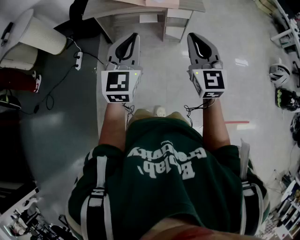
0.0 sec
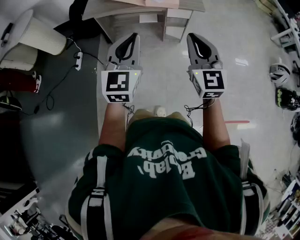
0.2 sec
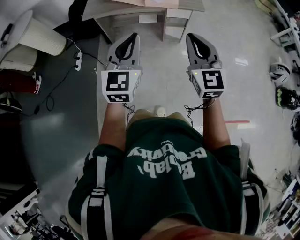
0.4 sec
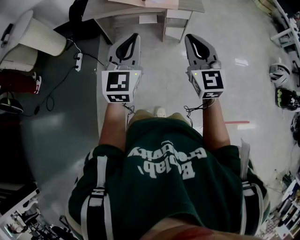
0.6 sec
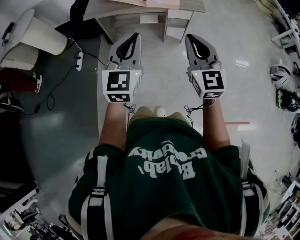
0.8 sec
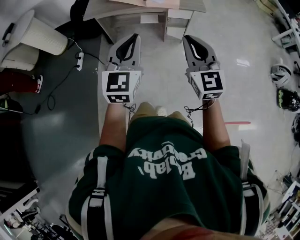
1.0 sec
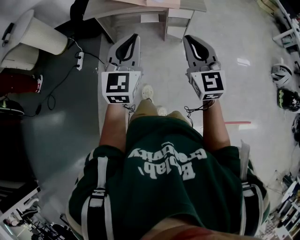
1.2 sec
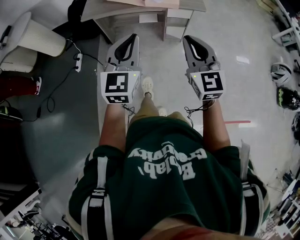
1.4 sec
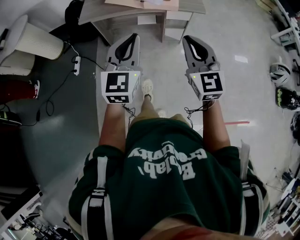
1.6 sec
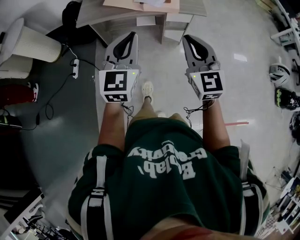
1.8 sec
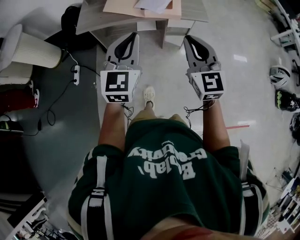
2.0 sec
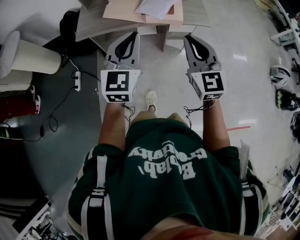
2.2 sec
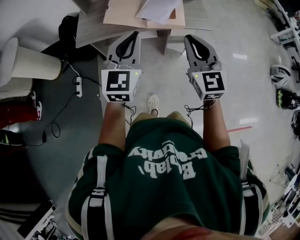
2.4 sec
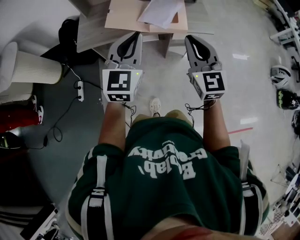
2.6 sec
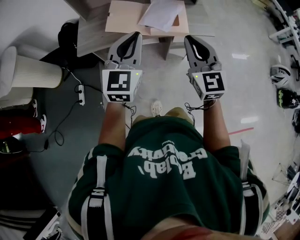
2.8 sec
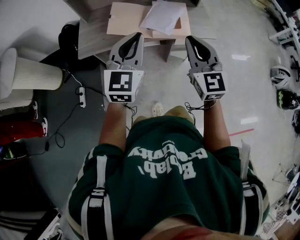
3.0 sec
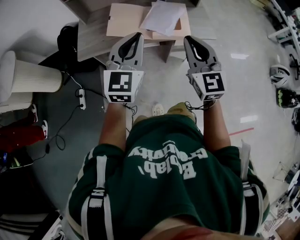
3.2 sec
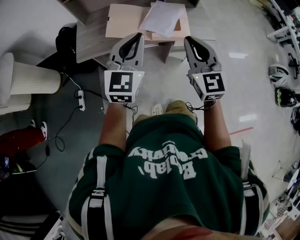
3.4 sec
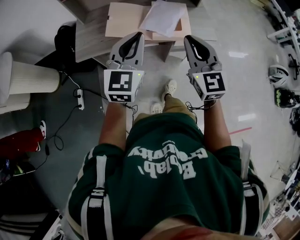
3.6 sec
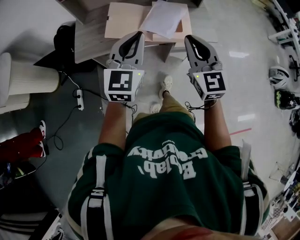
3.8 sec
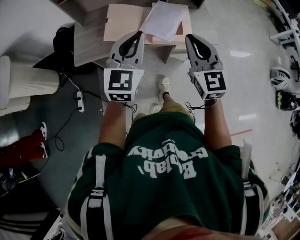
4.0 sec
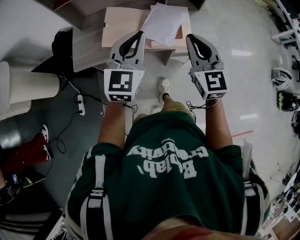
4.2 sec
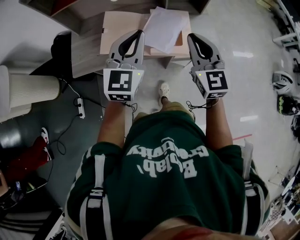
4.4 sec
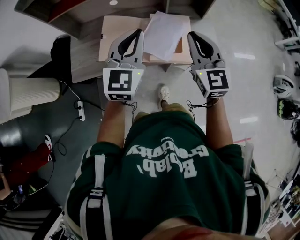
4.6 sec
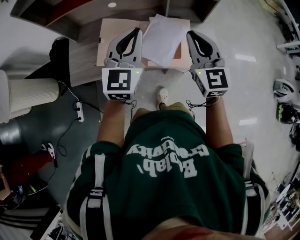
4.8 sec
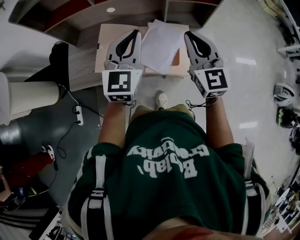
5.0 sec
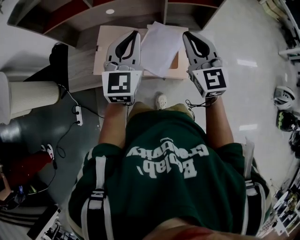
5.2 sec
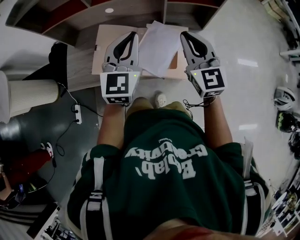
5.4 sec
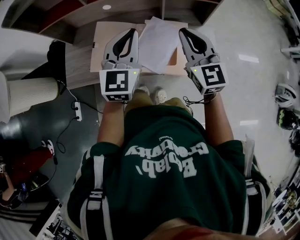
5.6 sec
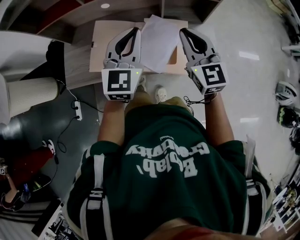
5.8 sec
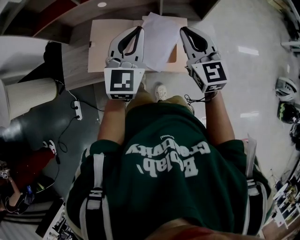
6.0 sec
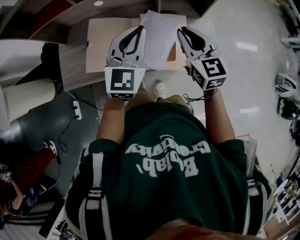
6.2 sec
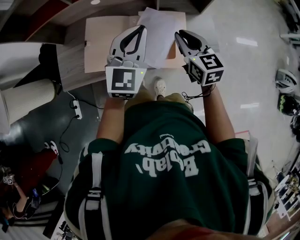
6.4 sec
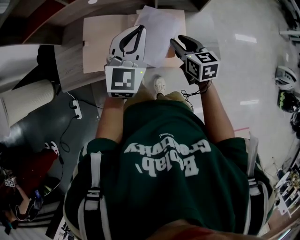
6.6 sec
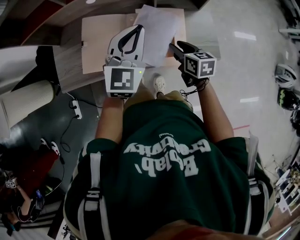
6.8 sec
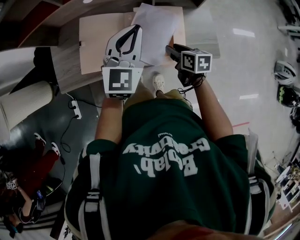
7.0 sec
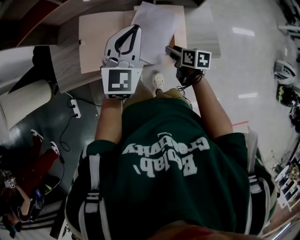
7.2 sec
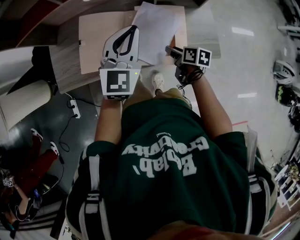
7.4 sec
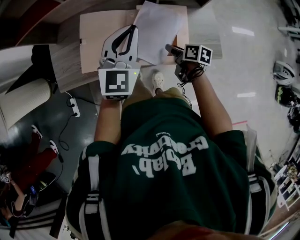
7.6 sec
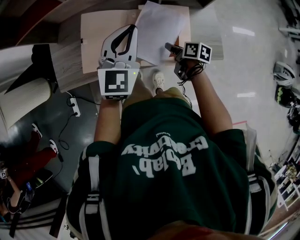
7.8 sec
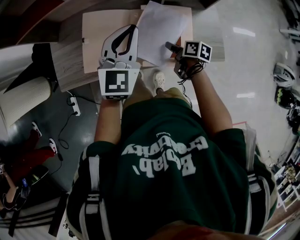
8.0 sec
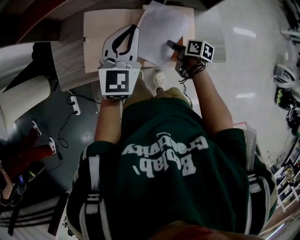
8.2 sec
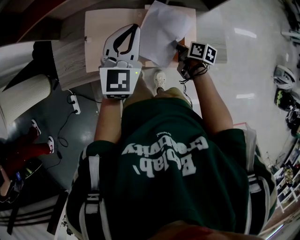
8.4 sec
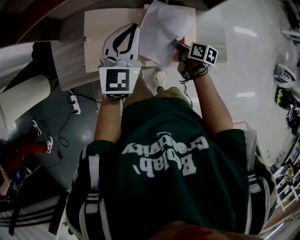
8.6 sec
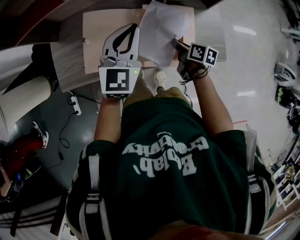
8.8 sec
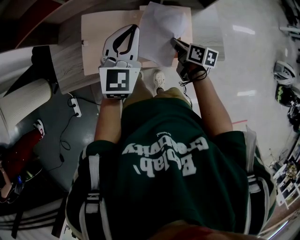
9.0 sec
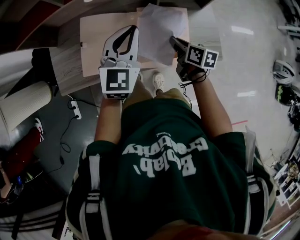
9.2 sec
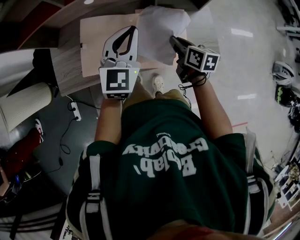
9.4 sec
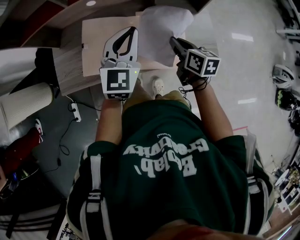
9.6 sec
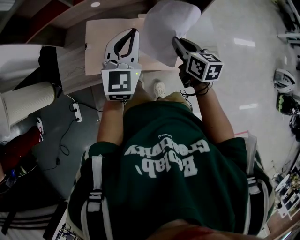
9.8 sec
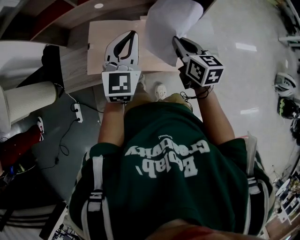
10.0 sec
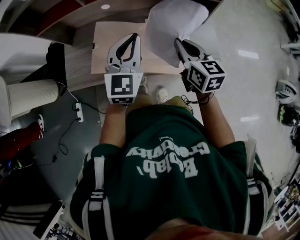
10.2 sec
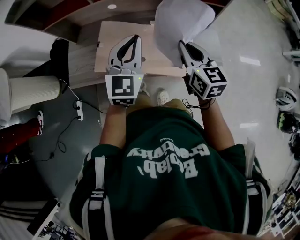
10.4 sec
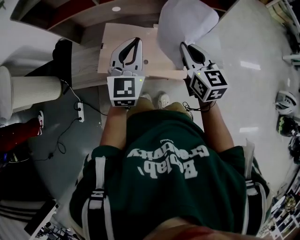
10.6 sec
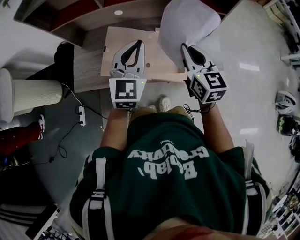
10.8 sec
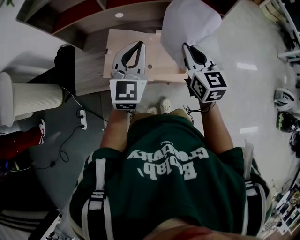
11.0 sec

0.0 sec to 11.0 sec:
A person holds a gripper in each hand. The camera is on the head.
0.0 sec to 1.6 sec: The two grippers go some 10 cm forward.
1.6 sec to 3.2 sec: The grippers both shift forward by some 35 cm.
3.2 sec to 4.8 sec: The grippers both shift forward by approximately 35 cm.
4.8 sec to 6.2 sec: The right gripper is displaced forward and downward by approximately 10 cm; the left gripper shifts about 10 cm forward and to the right.
6.2 sec to 7.8 sec: The right gripper heads downward, covering approximately 30 cm, rotates around the line of its fingers by some 60 degrees, clockwise from behind, and opens, while the left gripper moves downward, forward and to the left, about 10 cm.
7.8 sec to 9.4 sec: The right gripper travels upward by some 10 cm, rotates about 30 degrees, and closes up.
9.4 sec to 11.0 sec: The left gripper goes about 15 cm upward, backward and to the left. Meanwhile the right gripper moves upward, about 20 cm, and changes its angle by about 40 degrees.

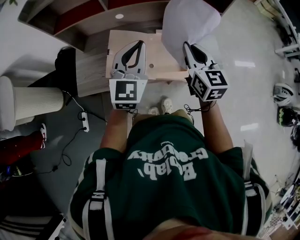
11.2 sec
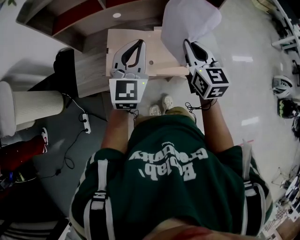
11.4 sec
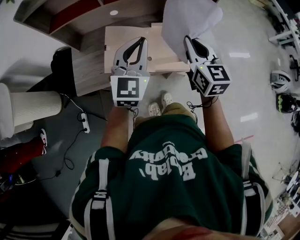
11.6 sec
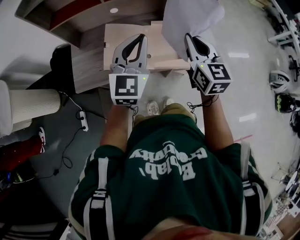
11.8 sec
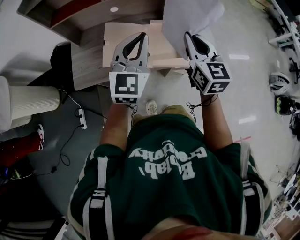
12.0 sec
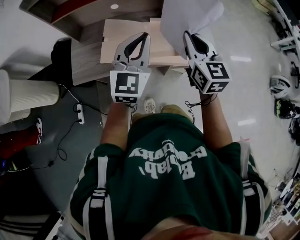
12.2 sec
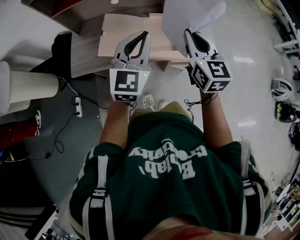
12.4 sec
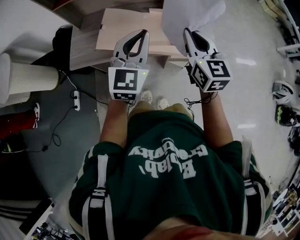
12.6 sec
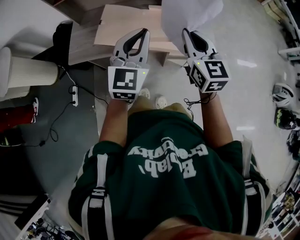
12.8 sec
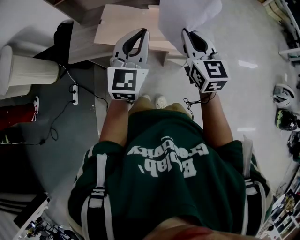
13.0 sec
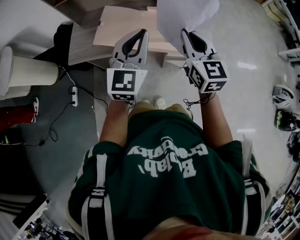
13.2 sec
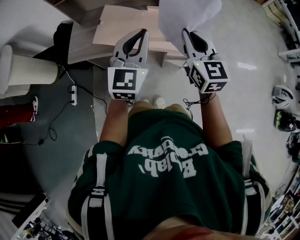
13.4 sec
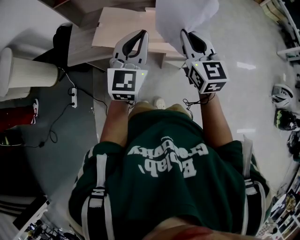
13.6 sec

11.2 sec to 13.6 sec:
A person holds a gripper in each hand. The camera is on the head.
11.2 sec to 12.4 sec: Both grippers move backward and to the right, about 15 cm.
12.4 sec to 13.6 sec: The grippers both shift backward and to the right by some 10 cm.

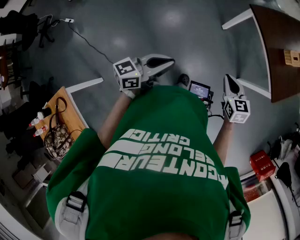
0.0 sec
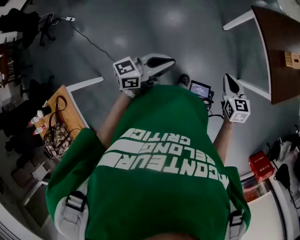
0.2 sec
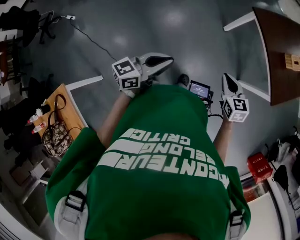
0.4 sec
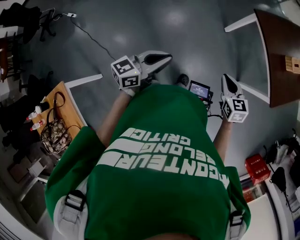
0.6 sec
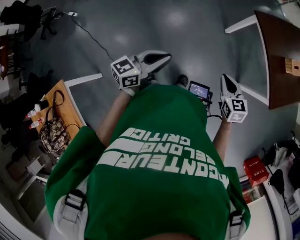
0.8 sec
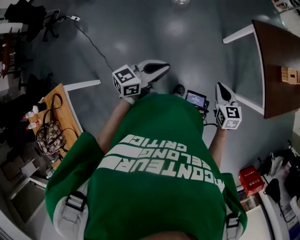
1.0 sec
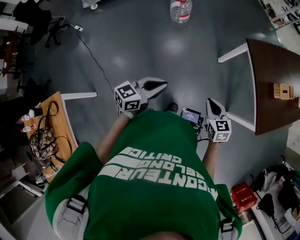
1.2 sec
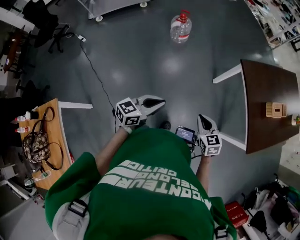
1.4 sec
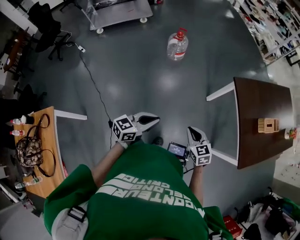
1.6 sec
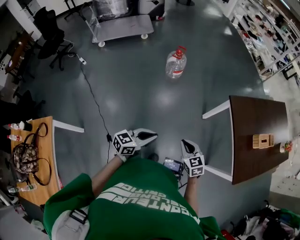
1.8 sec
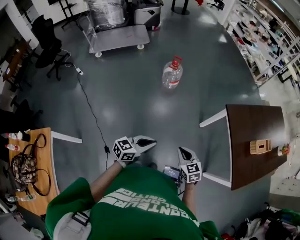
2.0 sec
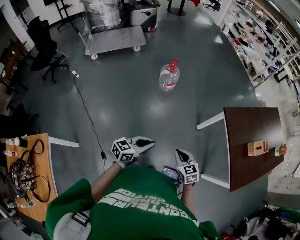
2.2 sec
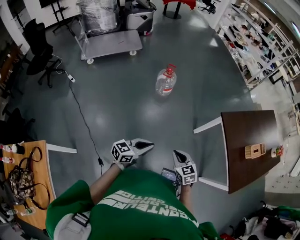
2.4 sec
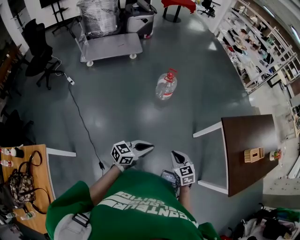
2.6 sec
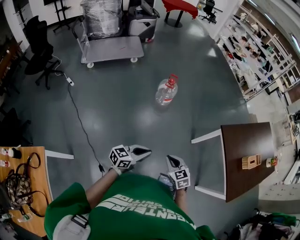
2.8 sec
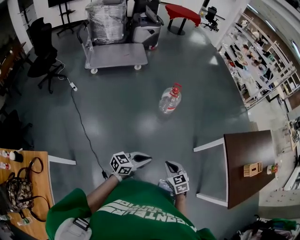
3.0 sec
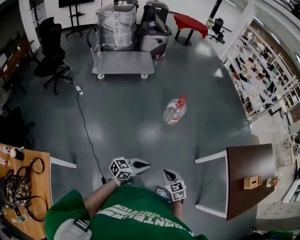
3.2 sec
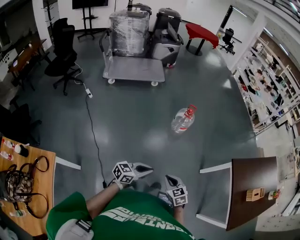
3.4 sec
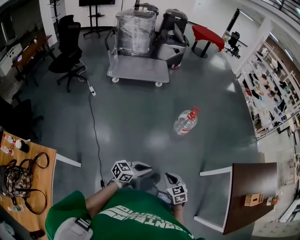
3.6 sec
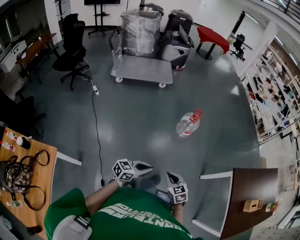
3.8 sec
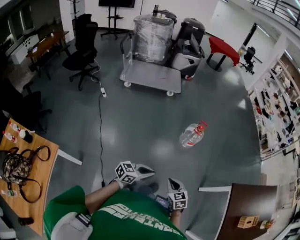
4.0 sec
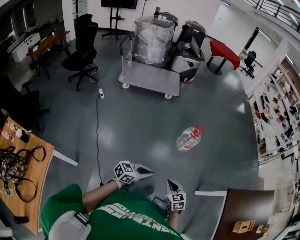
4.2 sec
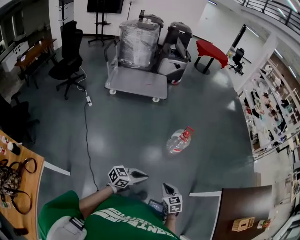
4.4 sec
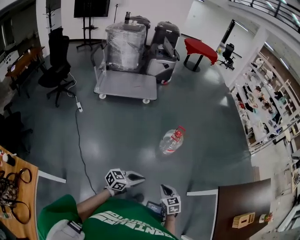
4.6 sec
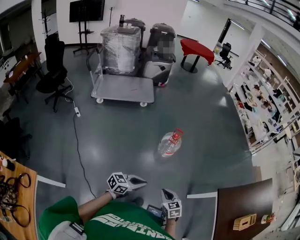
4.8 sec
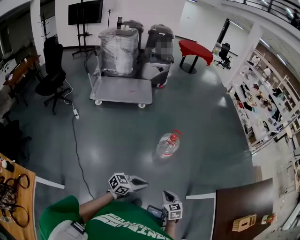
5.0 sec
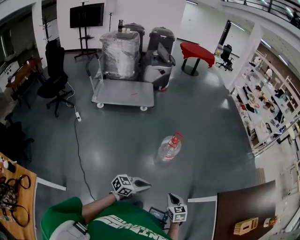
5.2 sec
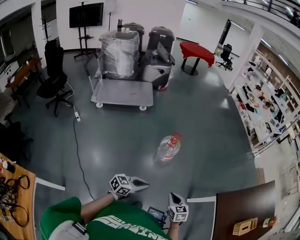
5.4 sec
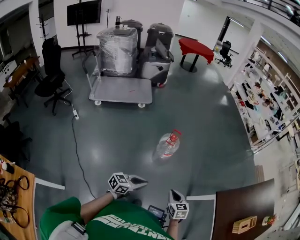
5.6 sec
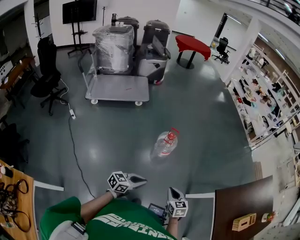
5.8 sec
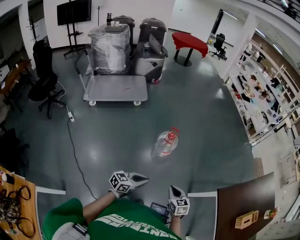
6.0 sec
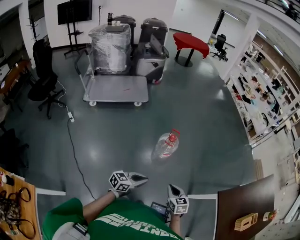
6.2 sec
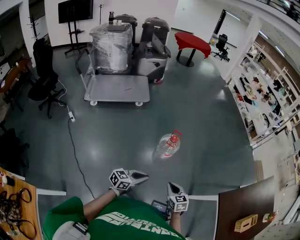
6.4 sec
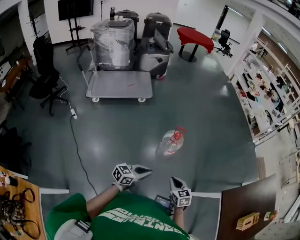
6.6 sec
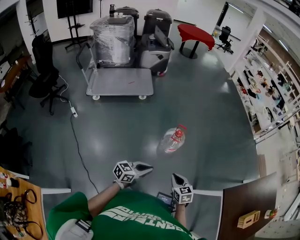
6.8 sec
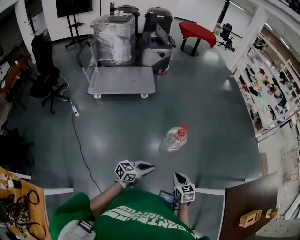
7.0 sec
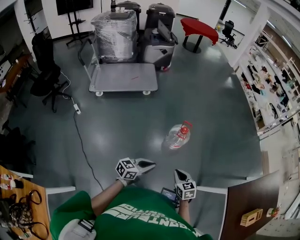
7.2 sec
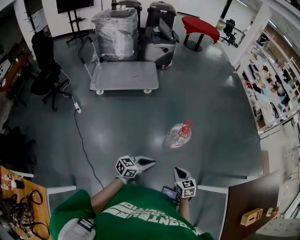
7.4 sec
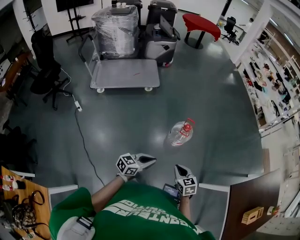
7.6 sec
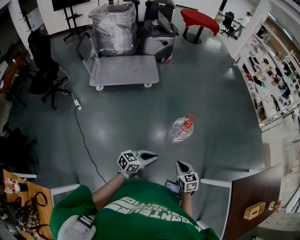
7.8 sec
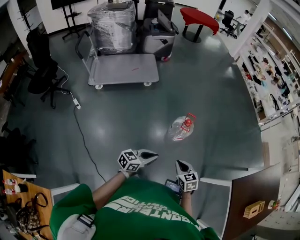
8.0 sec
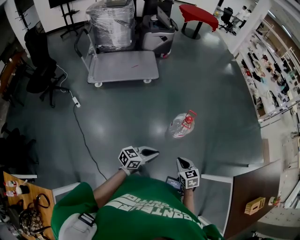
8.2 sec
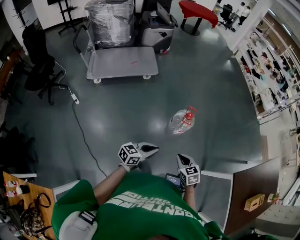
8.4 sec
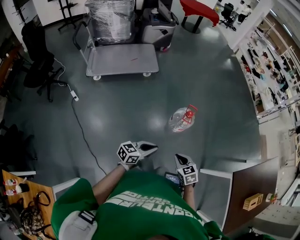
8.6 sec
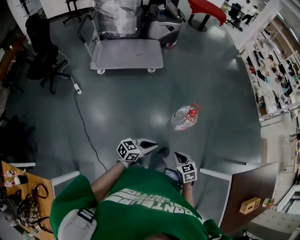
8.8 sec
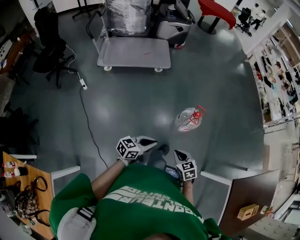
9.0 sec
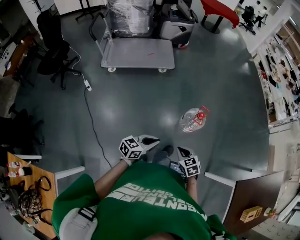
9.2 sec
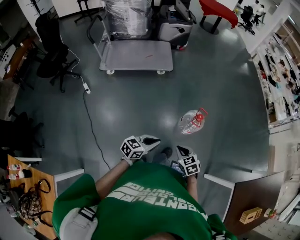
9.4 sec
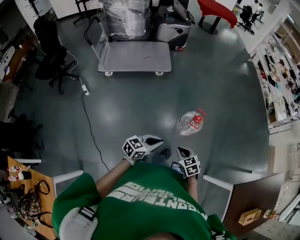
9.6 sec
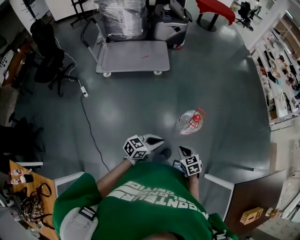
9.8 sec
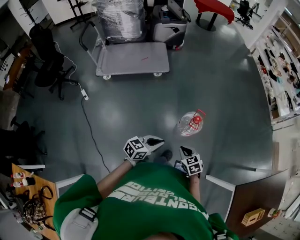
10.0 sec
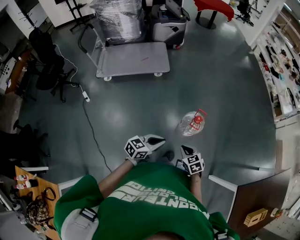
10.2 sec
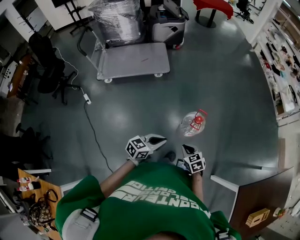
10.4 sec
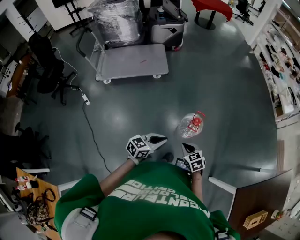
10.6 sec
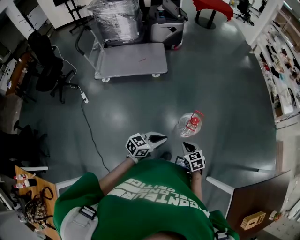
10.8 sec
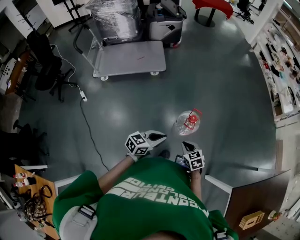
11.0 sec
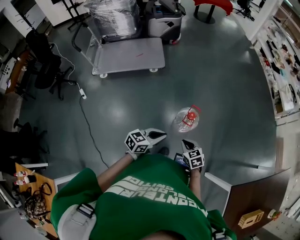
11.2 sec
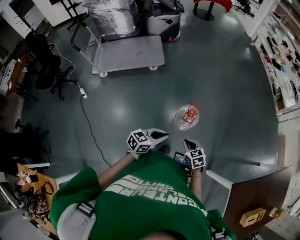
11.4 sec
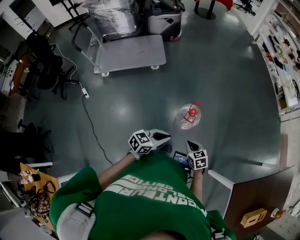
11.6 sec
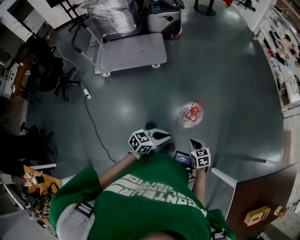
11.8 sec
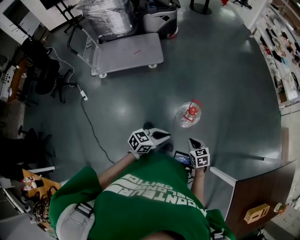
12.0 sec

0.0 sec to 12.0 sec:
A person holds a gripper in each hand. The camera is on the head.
0.0 sec to 1.6 sec: The right gripper heads forward, covering roughly 5 cm, and swivels some 20 degrees. The left gripper changes place by approximately 10 cm.
1.6 sec to 3.0 sec: The right gripper is displaced to the left by about 25 cm. The left gripper travels to the left and forward by about 20 cm.
3.0 sec to 4.4 sec: The right gripper travels forward by approximately 15 cm. Meanwhile the left gripper moves forward and to the left, some 15 cm.
4.4 sec to 6.0 sec: The left gripper moves forward, about 15 cm, while the right gripper heads forward and to the right, covering some 20 cm.
6.0 sec to 7.6 sec: The grippers both shift to the left and forward by some 15 cm.
7.6 sec to 9.0 sec: Both grippers move to the left, approximately 5 cm.
9.0 sec to 10.4 sec: Both grippers move forward and to the right, some 15 cm.
10.4 sec to 12.0 sec: The grippers both shift to the right by approximately 10 cm.
